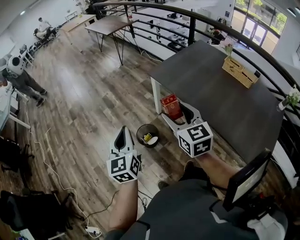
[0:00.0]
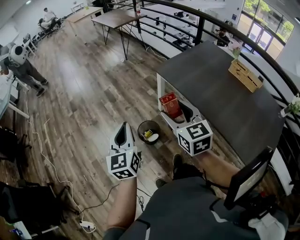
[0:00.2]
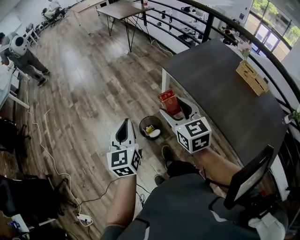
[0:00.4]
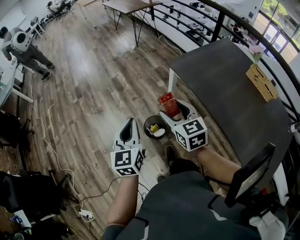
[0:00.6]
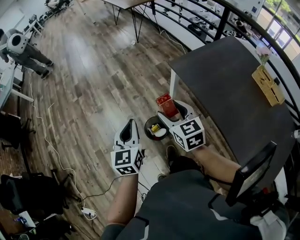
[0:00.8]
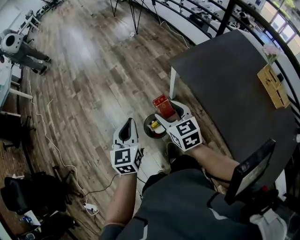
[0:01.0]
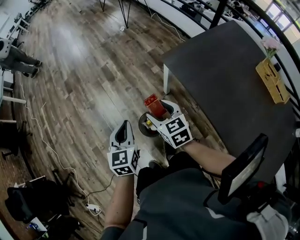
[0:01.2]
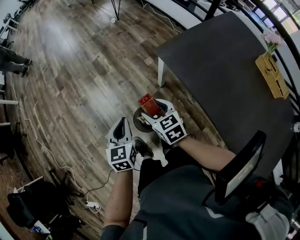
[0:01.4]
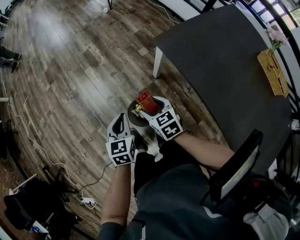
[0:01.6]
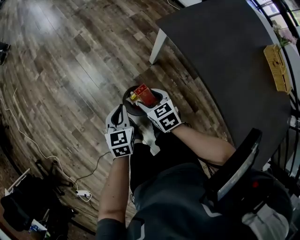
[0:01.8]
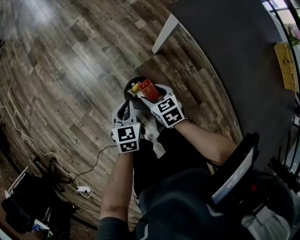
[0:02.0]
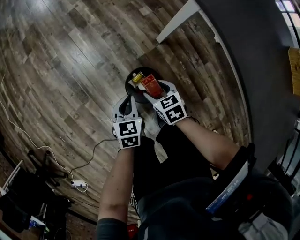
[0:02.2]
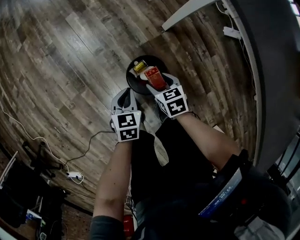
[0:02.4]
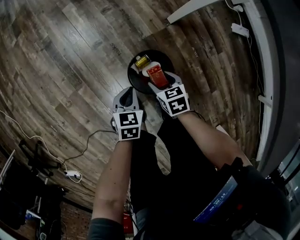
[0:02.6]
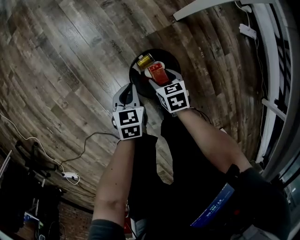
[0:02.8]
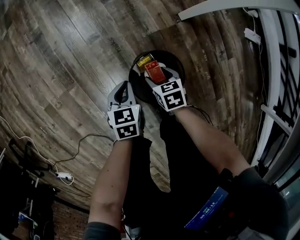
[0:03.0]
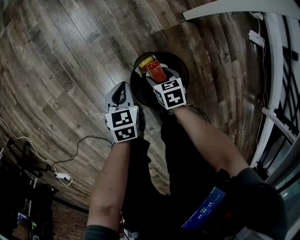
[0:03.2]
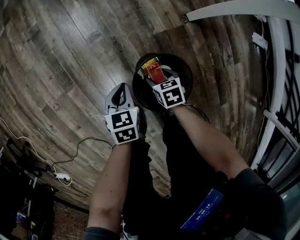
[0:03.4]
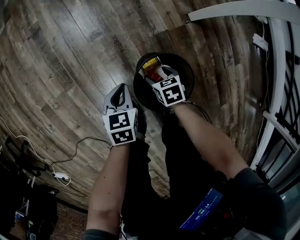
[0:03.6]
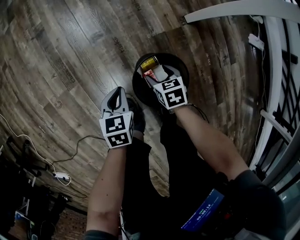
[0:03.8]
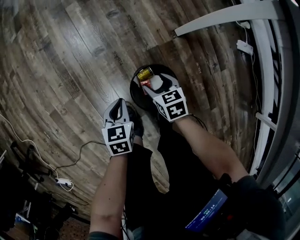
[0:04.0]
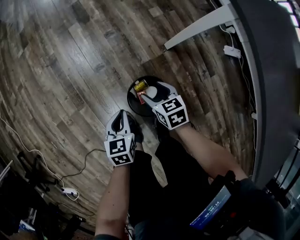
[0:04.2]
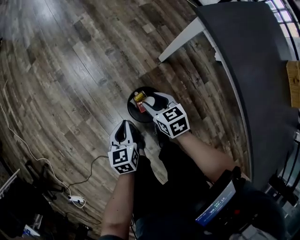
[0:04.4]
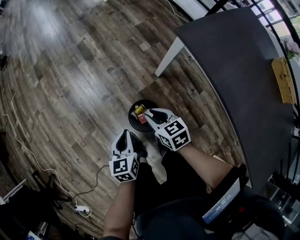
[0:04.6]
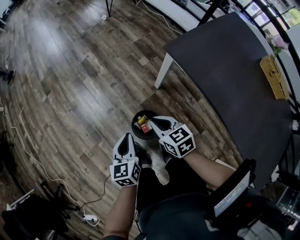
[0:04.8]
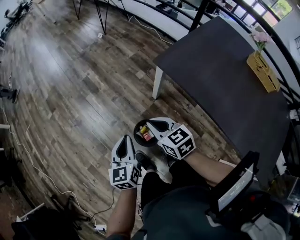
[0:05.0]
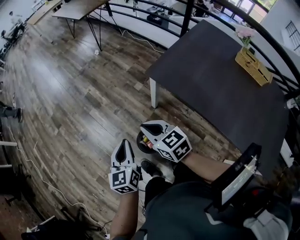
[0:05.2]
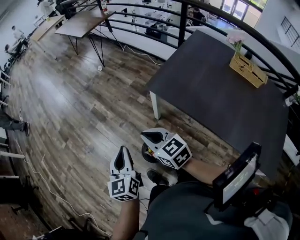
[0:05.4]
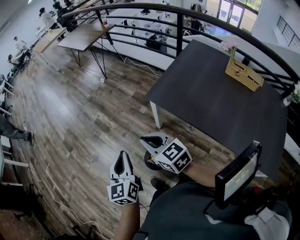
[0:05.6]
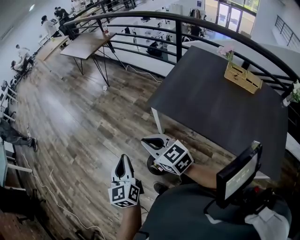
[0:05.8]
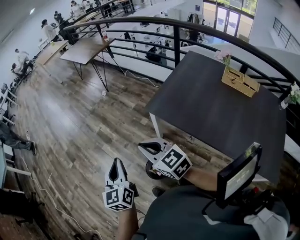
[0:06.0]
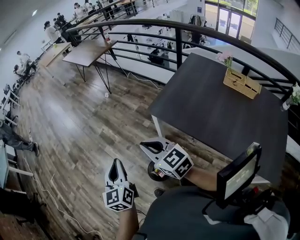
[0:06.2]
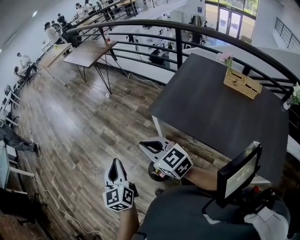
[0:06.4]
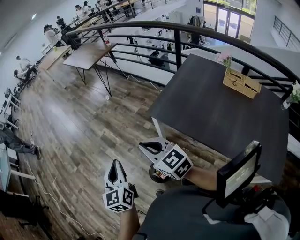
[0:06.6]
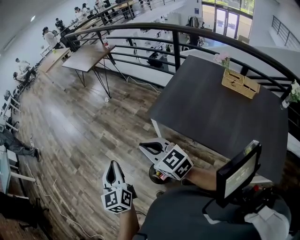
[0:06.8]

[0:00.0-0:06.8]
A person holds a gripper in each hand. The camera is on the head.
0:00.0 to 0:01.4: The left gripper shifts some 30 cm forward and downward, and changes its angle by roughly 20 degrees, while the right gripper goes roughly 35 cm downward and forward, and changes its angle by approximately 30 degrees.
0:01.4 to 0:02.8: Both grippers travel together downward, some 50 cm. The left gripper swivels roughly 20 degrees, while the right gripper swivels approximately 30 degrees.
0:02.8 to 0:04.0: The right gripper travels forward by about 5 cm, and goes downward and returns, roughly 15 cm each way. The left gripper moves roughly 10 cm downward and comes back.
0:04.0 to 0:05.4: Both grippers travel together upward, some 60 cm. The left gripper tips its fingers upward by roughly 40 degrees, while the right gripper angles its fingers upward, by roughly 30 degrees, and closes up.
0:05.4 to 0:06.8: Both grippers move upward, some 10 cm.

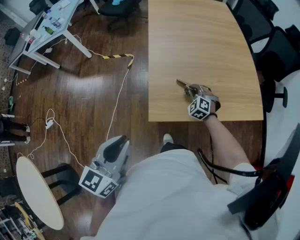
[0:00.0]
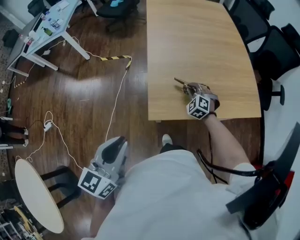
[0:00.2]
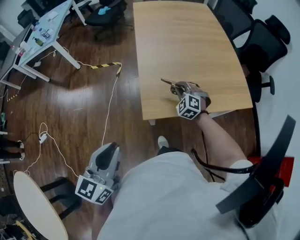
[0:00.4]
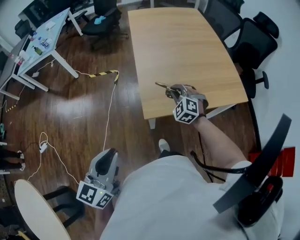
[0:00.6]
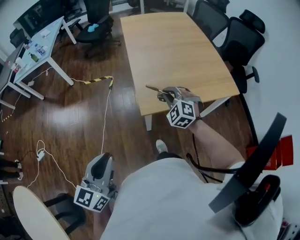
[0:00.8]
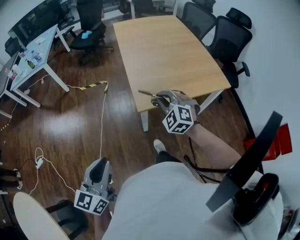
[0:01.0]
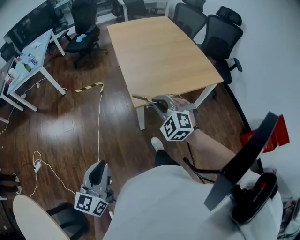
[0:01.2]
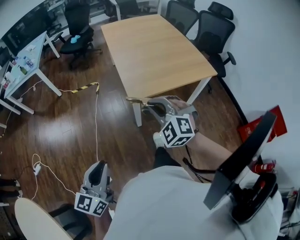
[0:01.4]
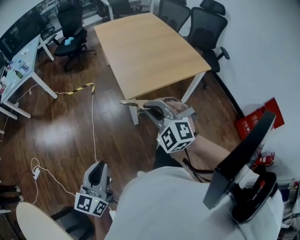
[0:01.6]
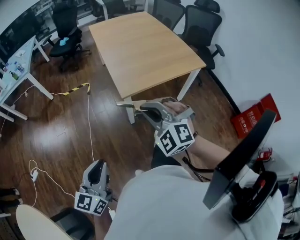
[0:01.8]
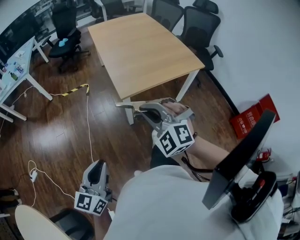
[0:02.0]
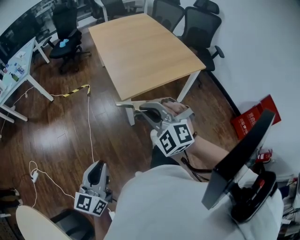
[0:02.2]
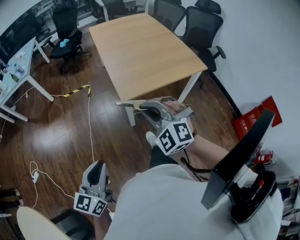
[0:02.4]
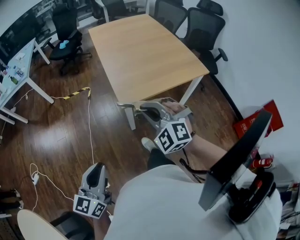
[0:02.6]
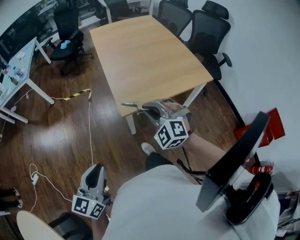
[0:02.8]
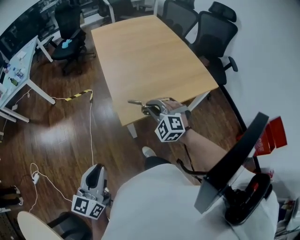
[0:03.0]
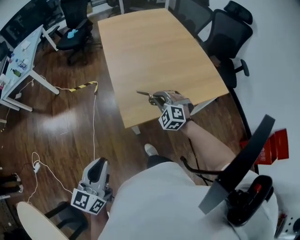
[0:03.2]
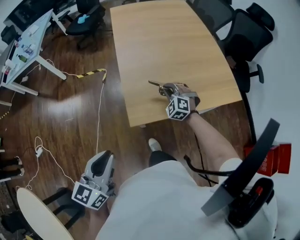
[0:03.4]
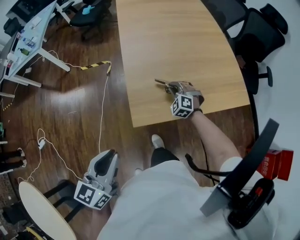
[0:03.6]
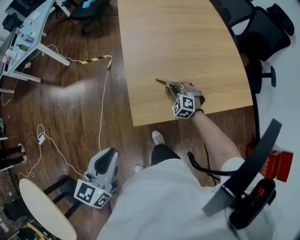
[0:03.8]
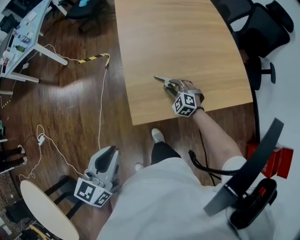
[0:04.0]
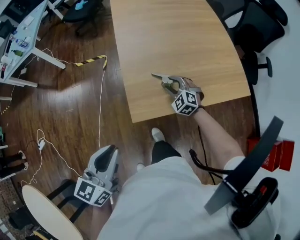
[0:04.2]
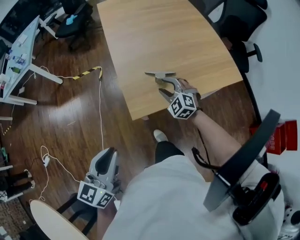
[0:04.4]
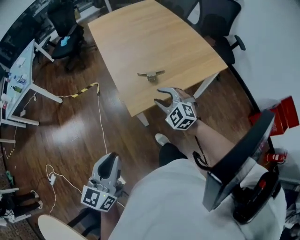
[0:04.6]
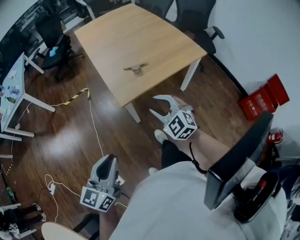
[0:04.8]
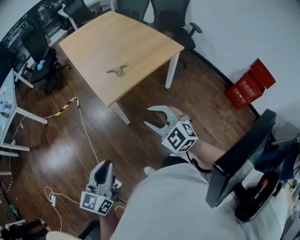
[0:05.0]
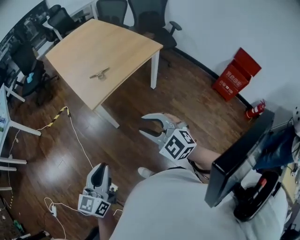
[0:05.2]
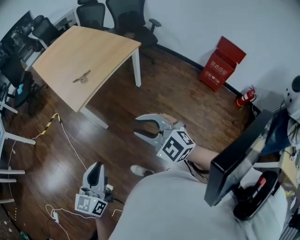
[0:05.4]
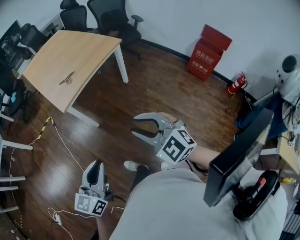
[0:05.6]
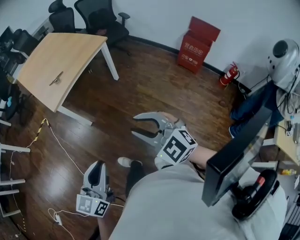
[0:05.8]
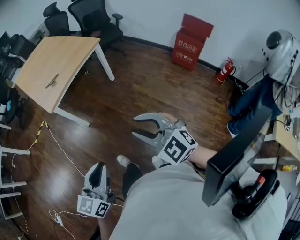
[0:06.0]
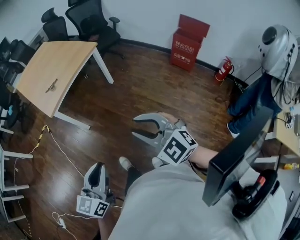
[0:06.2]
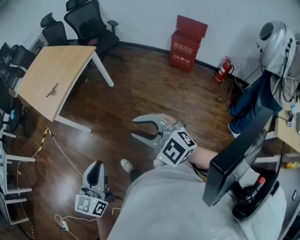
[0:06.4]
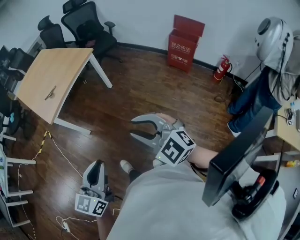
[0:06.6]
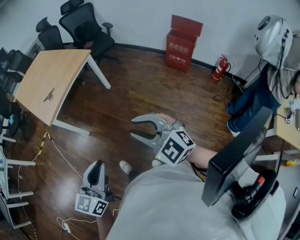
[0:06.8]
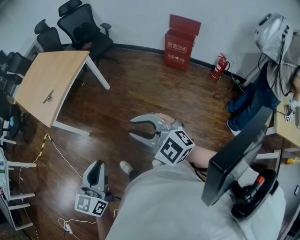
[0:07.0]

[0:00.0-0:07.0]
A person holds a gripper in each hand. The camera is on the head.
0:00.0 to 0:01.4: The left gripper goes roughly 25 cm backward and to the left. The right gripper shifts roughly 40 cm backward and upward.
0:01.4 to 0:02.8: The grippers both shift forward by some 5 cm.
0:02.8 to 0:04.2: The right gripper heads forward and downward, covering roughly 30 cm, and opens, while the left gripper heads forward, covering some 15 cm.
0:04.2 to 0:05.6: The left gripper goes roughly 35 cm backward and to the right, and changes its angle by approximately 30 degrees. The right gripper is displaced backward and upward by about 60 cm, and changes its angle by approximately 40 degrees.
0:05.6 to 0:07.0: Both grippers travel together to the right and backward, approximately 15 cm.

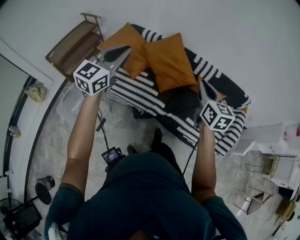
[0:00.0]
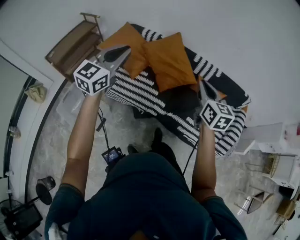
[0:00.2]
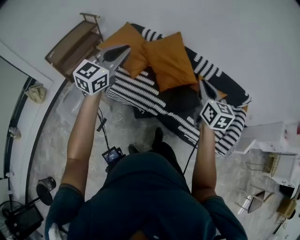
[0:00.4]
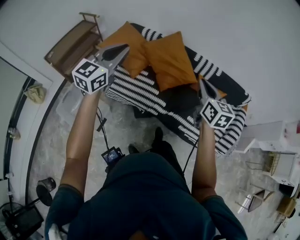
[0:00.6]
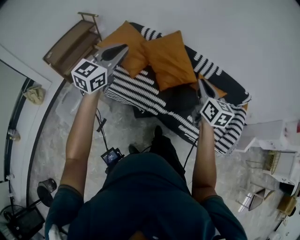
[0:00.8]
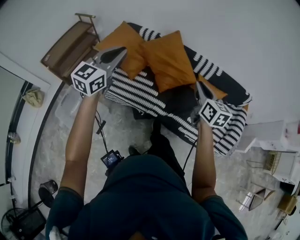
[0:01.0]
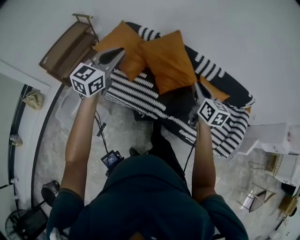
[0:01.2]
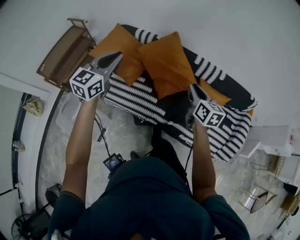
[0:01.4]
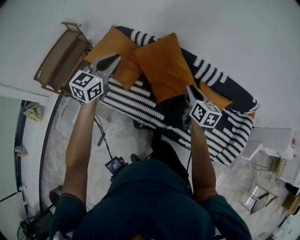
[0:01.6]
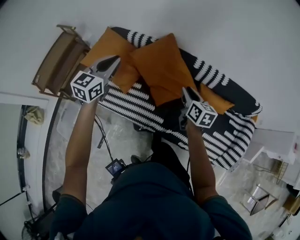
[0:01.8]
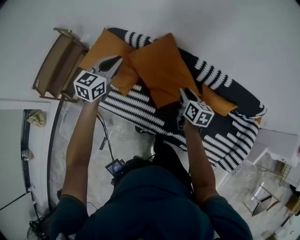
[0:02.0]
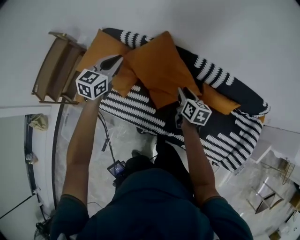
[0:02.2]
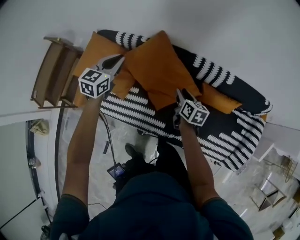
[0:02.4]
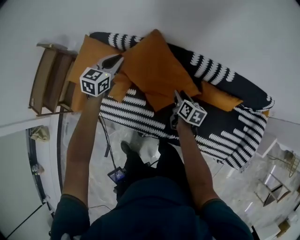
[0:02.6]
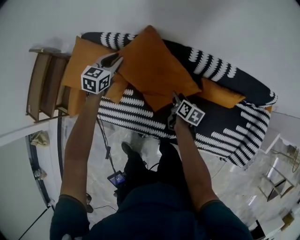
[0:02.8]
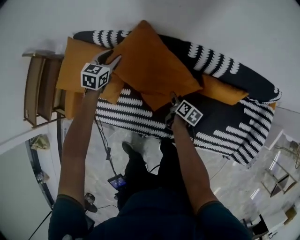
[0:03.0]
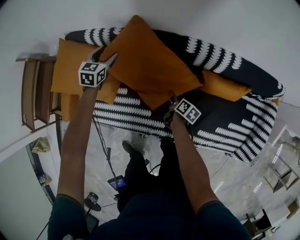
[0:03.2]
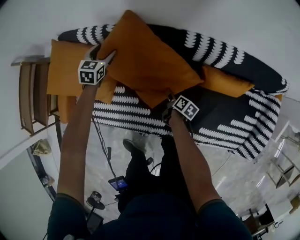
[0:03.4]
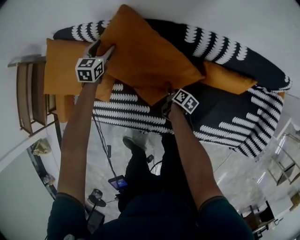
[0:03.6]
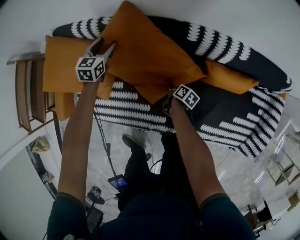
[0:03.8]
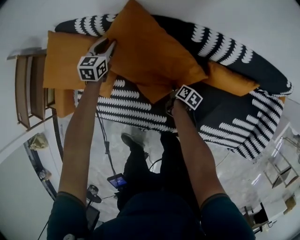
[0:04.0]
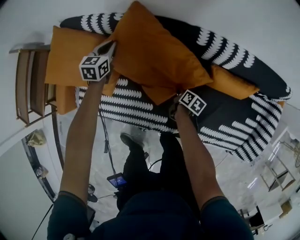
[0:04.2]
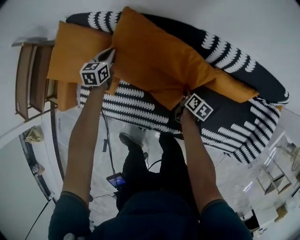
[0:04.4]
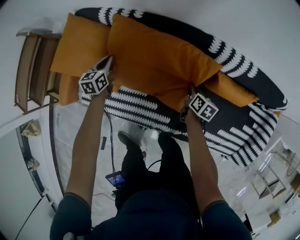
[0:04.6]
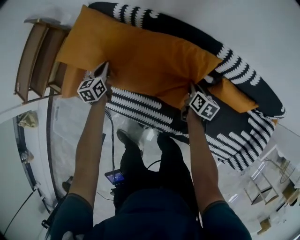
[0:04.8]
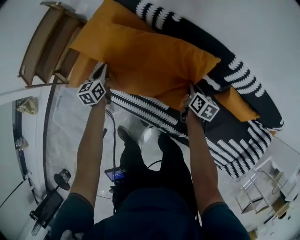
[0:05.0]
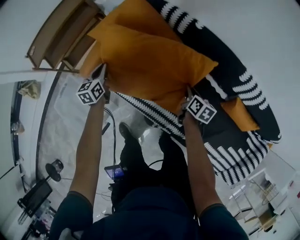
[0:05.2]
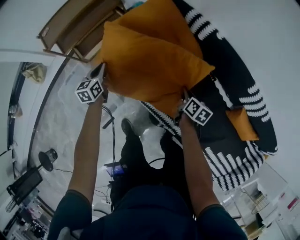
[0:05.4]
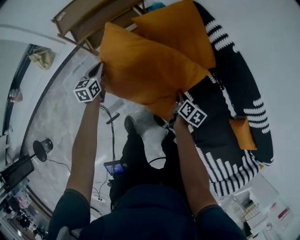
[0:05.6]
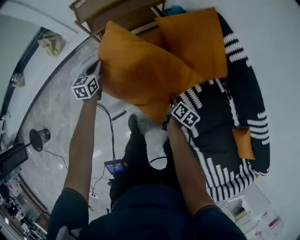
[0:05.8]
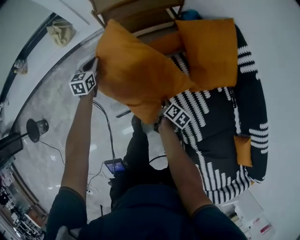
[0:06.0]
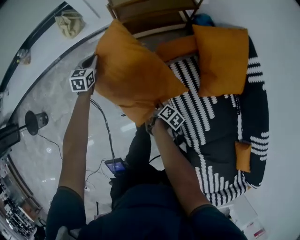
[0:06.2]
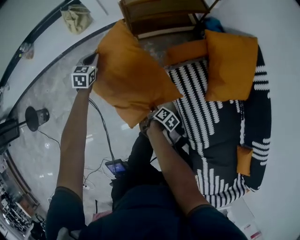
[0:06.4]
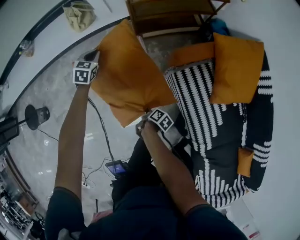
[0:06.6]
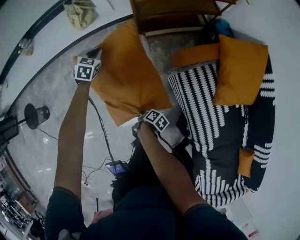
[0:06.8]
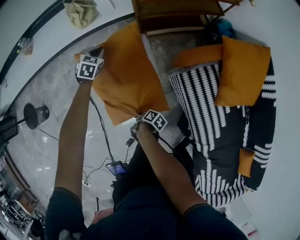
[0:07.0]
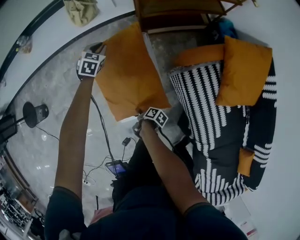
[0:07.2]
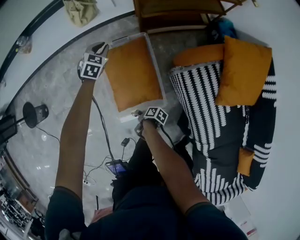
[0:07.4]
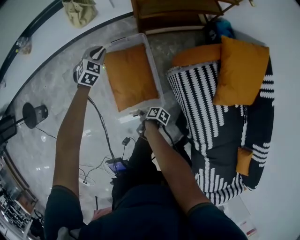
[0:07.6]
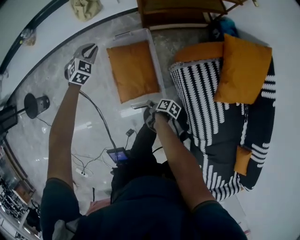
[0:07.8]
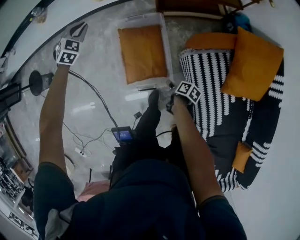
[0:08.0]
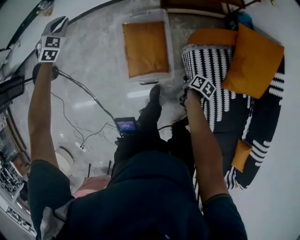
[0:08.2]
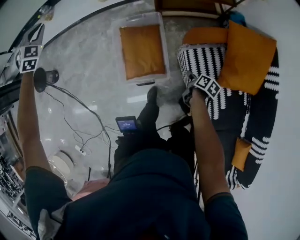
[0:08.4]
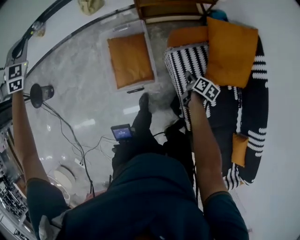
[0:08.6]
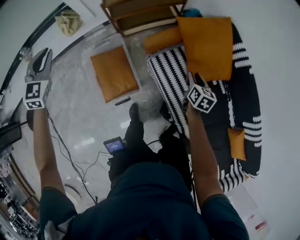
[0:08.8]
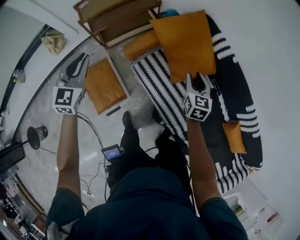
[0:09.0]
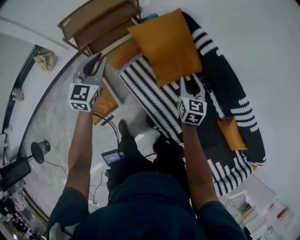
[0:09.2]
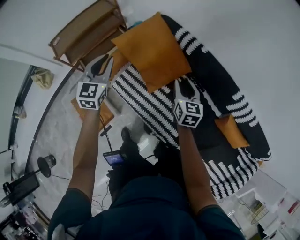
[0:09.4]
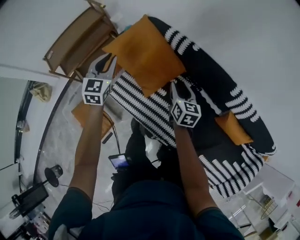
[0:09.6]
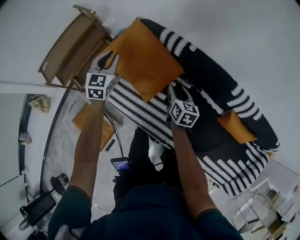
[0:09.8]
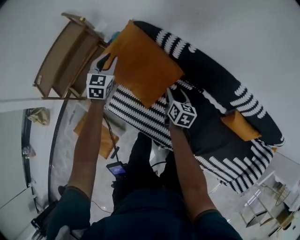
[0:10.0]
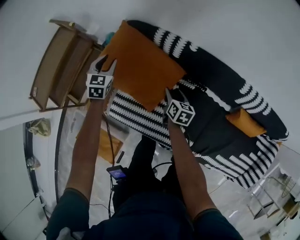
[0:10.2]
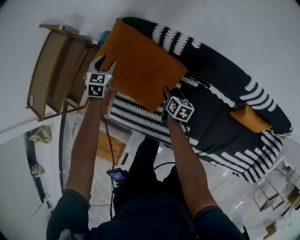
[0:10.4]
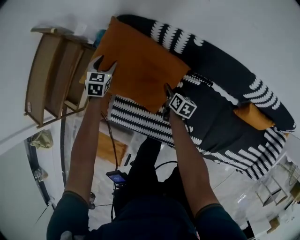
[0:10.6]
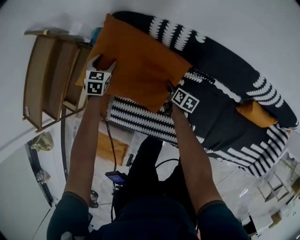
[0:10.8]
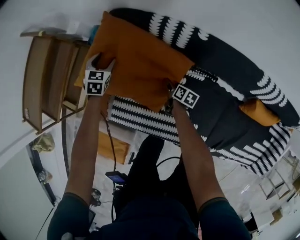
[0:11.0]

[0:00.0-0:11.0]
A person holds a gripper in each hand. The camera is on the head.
0:00.0 to 0:01.6: The grippers both shift forward and downward by about 25 cm.
0:01.6 to 0:03.2: The right gripper goes roughly 40 cm downward, twists approximately 50 degrees clockwise, seen from behind, and opens up; the left gripper goes about 50 cm downward and forward, turns by about 30 degrees, and opens.
0:03.2 to 0:04.8: The right gripper goes roughly 10 cm upward, forward and to the left, swivels some 30 degrees, and closes its fingers. The left gripper heads to the left and backward, covering some 25 cm, swivels approximately 40 degrees, and closes its fingers.
0:04.8 to 0:06.2: Both grippers are carried about 70 cm. The left gripper turns by about 40 degrees. Meanwhile the right gripper rotates about 40 degrees.
0:06.2 to 0:07.8: The left gripper moves about 15 cm, and rotates roughly 40 degrees. The right gripper moves about 20 cm, swivels about 30 degrees, and opens.
0:07.8 to 0:09.4: The pair of grippers is taken roughly 70 cm. The left gripper points its fingers about 30 degrees further upward; the right gripper turns by about 80 degrees.
0:09.4 to 0:11.0: The left gripper heads downward and forward, covering about 50 cm, points its fingers some 30 degrees further downward, and opens. The right gripper travels downward by about 40 cm, rotates around the line of its fingers by approximately 60 degrees, clockwise from behind, and opens up.
